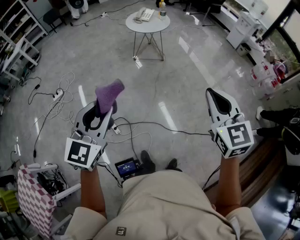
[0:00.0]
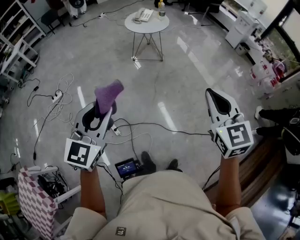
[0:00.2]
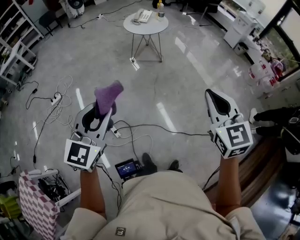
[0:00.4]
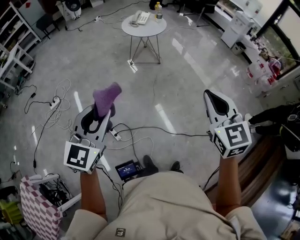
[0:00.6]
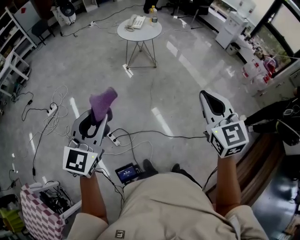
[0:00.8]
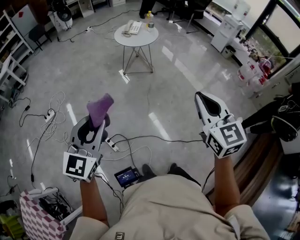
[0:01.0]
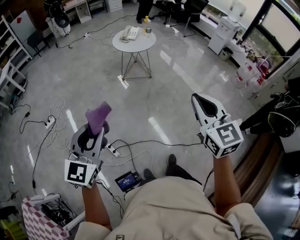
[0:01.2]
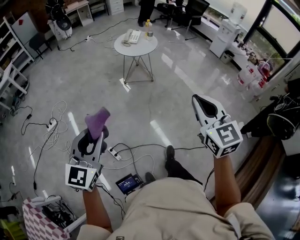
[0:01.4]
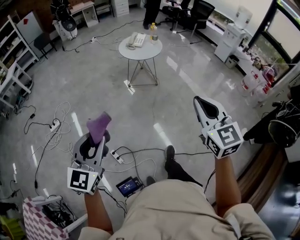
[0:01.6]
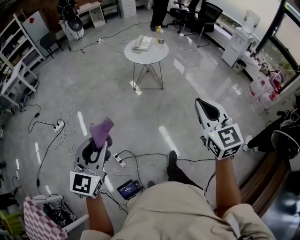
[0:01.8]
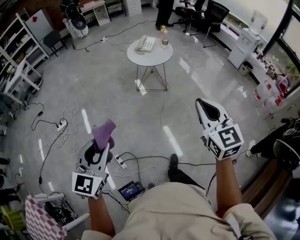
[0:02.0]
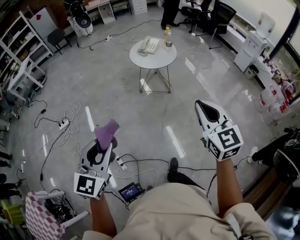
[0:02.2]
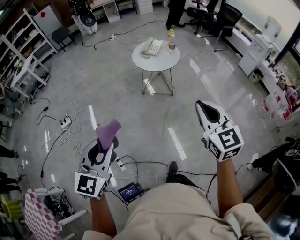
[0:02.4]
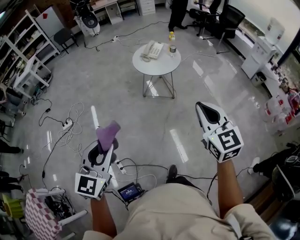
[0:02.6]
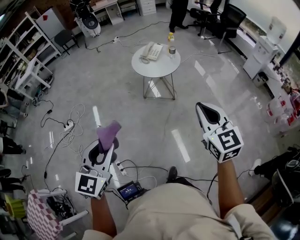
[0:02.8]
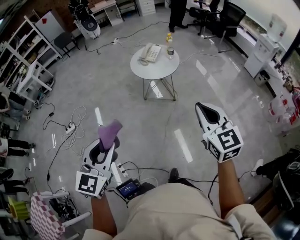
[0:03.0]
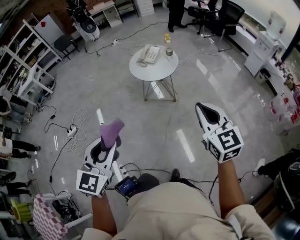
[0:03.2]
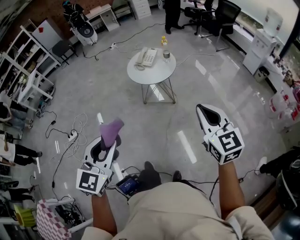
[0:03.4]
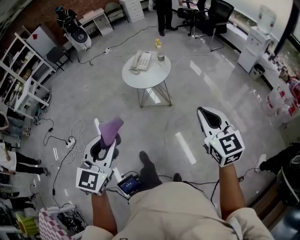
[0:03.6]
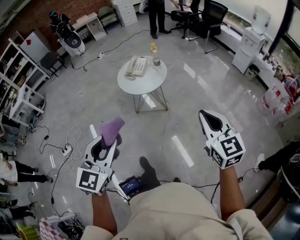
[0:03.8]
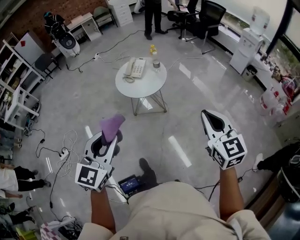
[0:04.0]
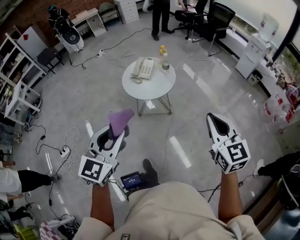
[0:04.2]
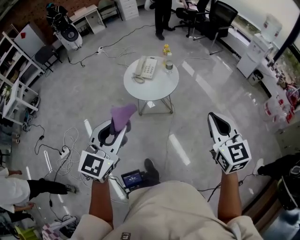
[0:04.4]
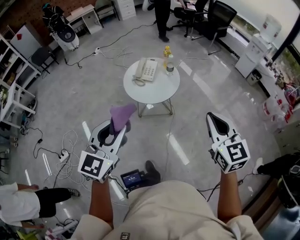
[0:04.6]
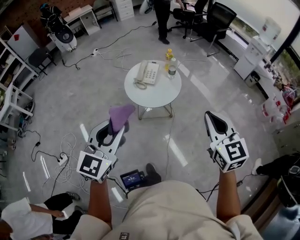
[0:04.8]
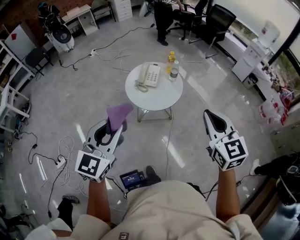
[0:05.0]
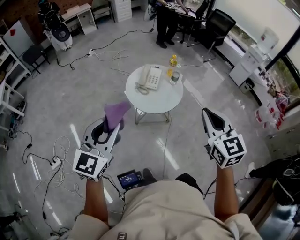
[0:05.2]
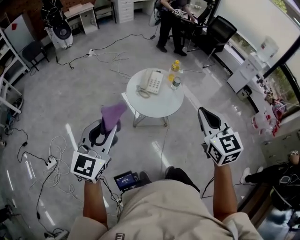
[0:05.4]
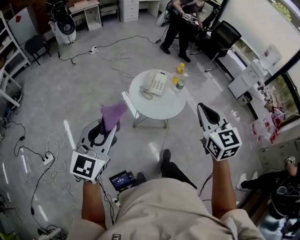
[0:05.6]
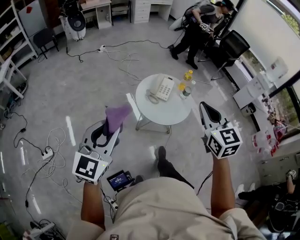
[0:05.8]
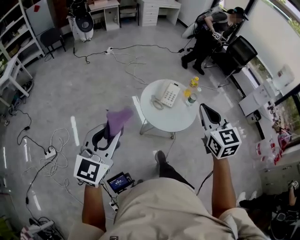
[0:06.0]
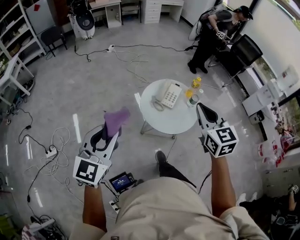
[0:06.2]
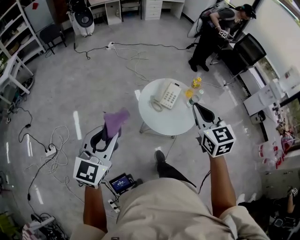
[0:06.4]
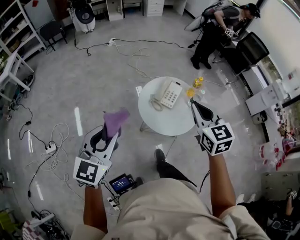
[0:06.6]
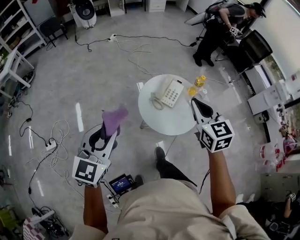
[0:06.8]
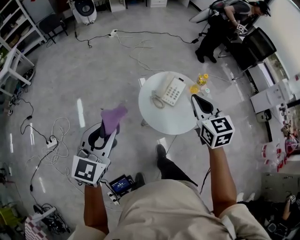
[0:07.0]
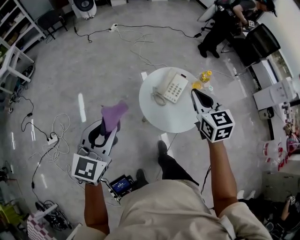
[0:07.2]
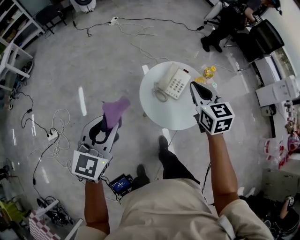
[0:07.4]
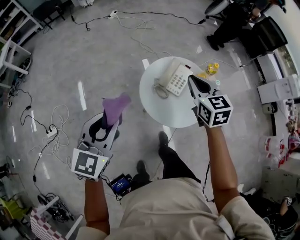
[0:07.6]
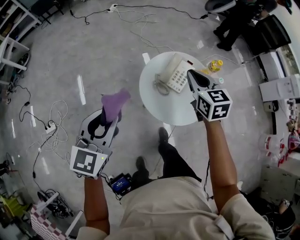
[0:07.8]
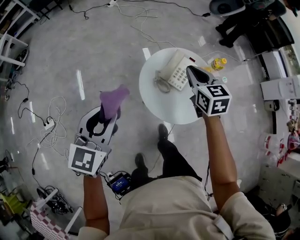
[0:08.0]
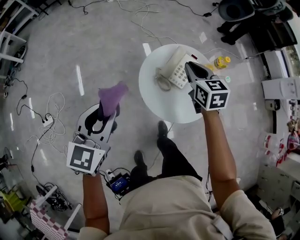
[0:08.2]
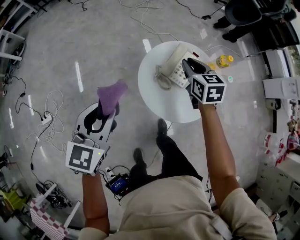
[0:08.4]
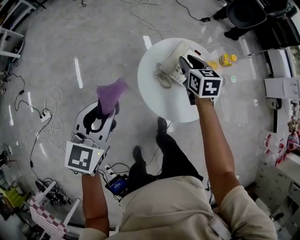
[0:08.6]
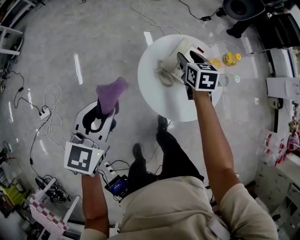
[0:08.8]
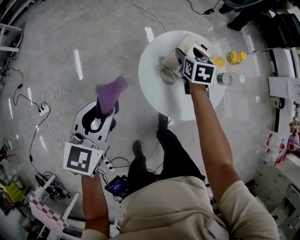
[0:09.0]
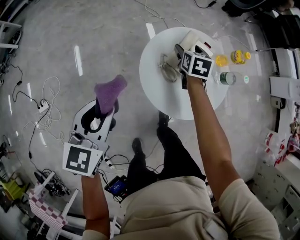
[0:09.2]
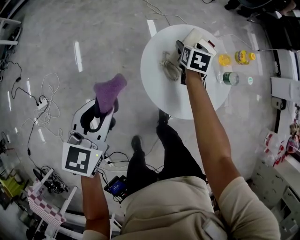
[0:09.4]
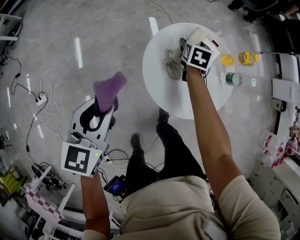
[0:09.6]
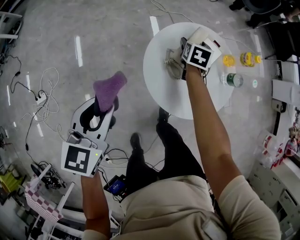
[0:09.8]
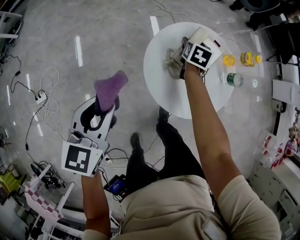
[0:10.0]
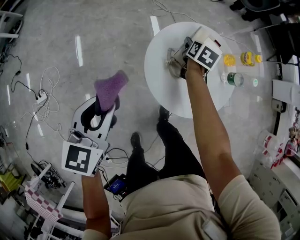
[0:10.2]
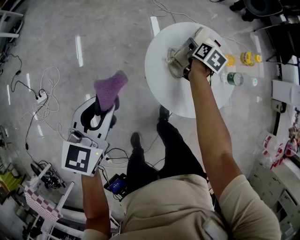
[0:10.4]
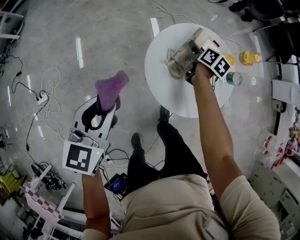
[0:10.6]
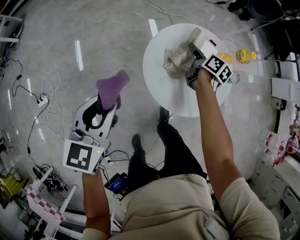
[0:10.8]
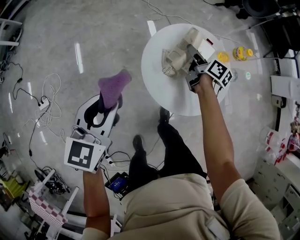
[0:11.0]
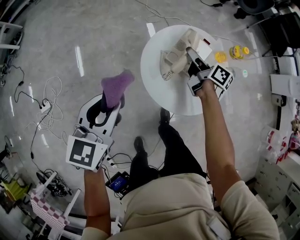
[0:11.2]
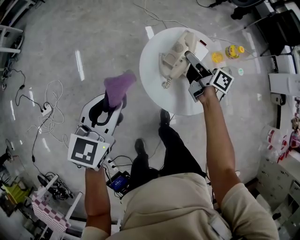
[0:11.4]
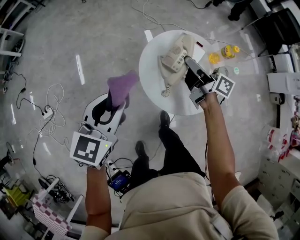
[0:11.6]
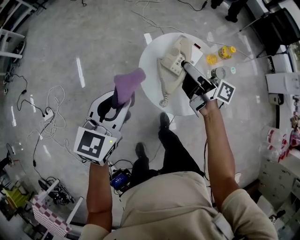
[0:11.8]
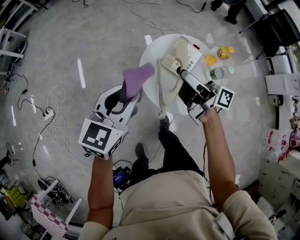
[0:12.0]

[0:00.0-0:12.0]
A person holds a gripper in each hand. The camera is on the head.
0:00.0 to 0:01.6: The left gripper shifts some 10 cm to the left and forward. Meanwhile the right gripper moves forward and to the left, roughly 15 cm.
0:01.6 to 0:03.0: Both grippers move forward and to the right, roughly 30 cm.
0:03.0 to 0:04.4: The right gripper heads forward, covering some 20 cm; the left gripper goes approximately 30 cm forward.
0:04.4 to 0:06.0: The two grippers go roughly 35 cm to the left and forward.
0:06.0 to 0:07.6: Both grippers move forward and downward, roughly 25 cm.
0:07.6 to 0:09.0: The right gripper travels downward and forward by about 30 cm, changes its angle by roughly 20 degrees, and opens its fingers; the left gripper goes some 15 cm downward and forward.
0:09.0 to 0:10.4: The right gripper travels downward by roughly 10 cm, and swivels about 30 degrees.
0:10.4 to 0:12.0: The right gripper goes about 30 cm upward and backward, and angles its fingers upward, by some 60 degrees. Meanwhile the left gripper moves to the right and upward, roughly 10 cm.

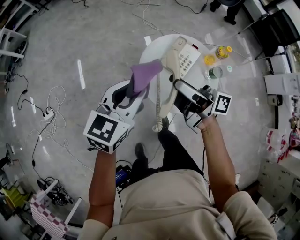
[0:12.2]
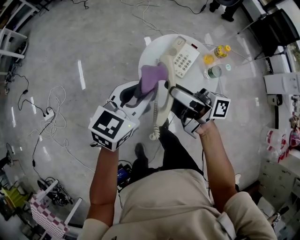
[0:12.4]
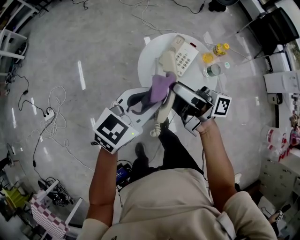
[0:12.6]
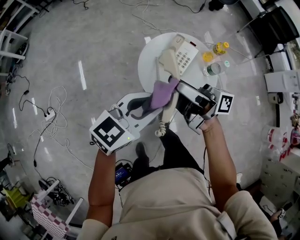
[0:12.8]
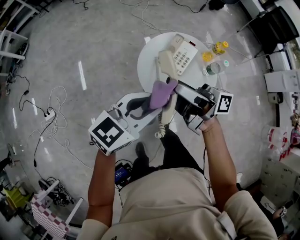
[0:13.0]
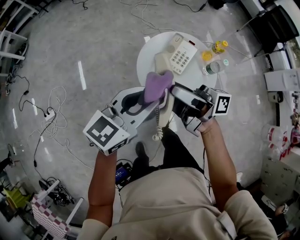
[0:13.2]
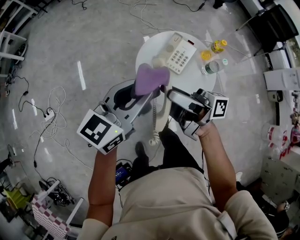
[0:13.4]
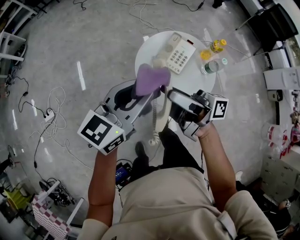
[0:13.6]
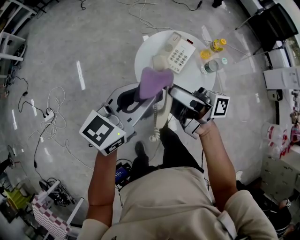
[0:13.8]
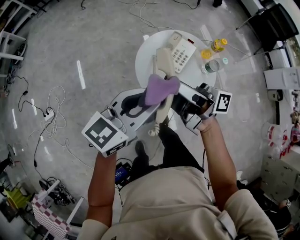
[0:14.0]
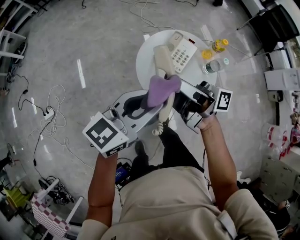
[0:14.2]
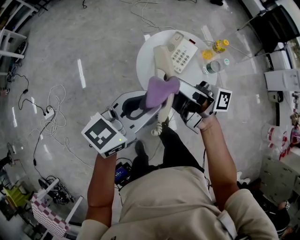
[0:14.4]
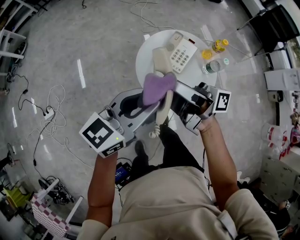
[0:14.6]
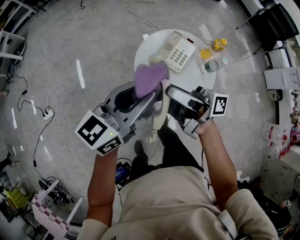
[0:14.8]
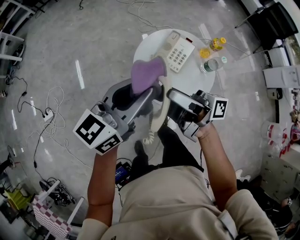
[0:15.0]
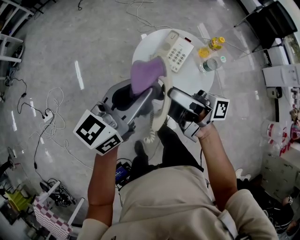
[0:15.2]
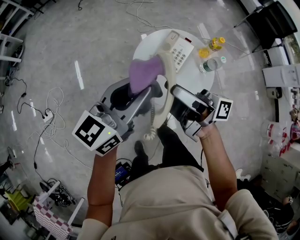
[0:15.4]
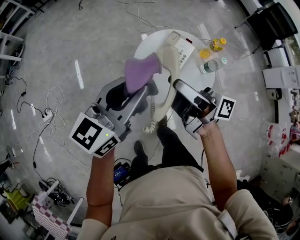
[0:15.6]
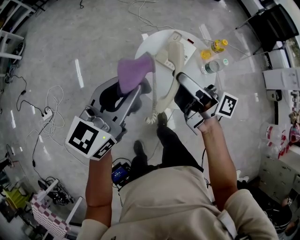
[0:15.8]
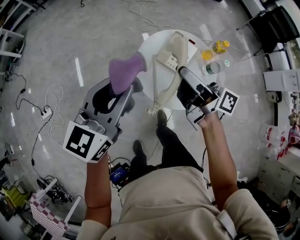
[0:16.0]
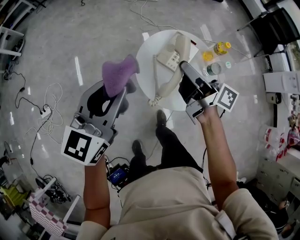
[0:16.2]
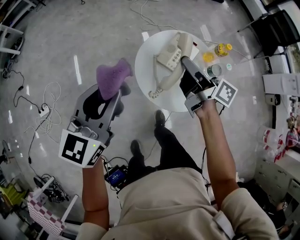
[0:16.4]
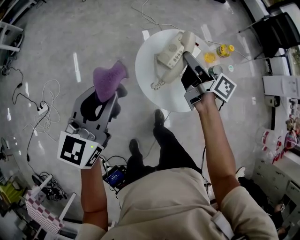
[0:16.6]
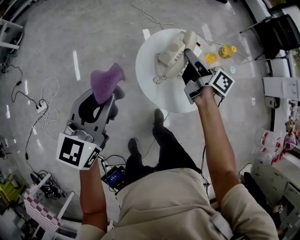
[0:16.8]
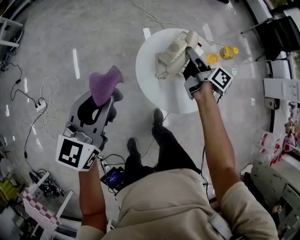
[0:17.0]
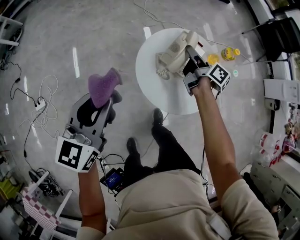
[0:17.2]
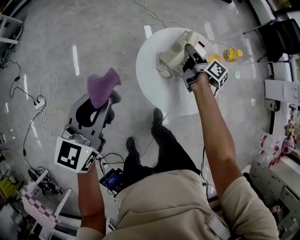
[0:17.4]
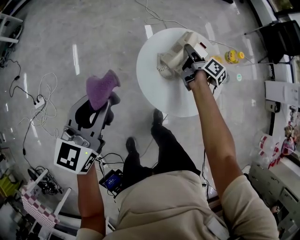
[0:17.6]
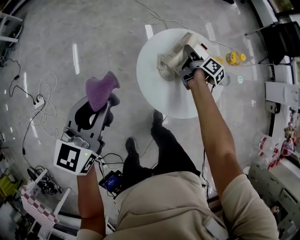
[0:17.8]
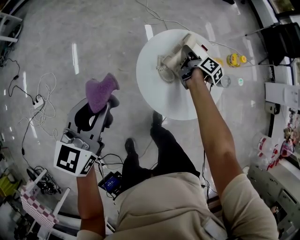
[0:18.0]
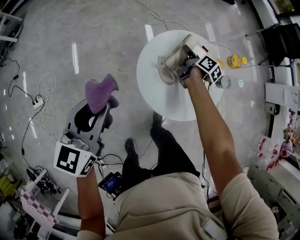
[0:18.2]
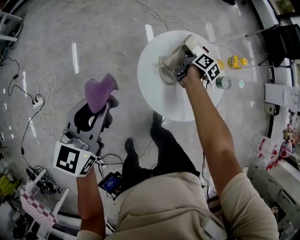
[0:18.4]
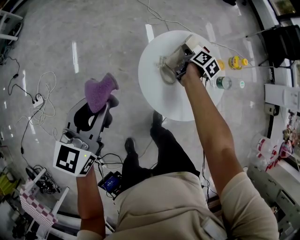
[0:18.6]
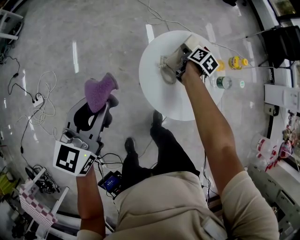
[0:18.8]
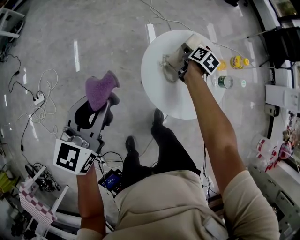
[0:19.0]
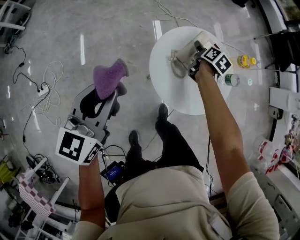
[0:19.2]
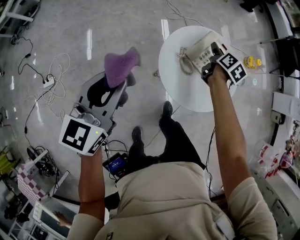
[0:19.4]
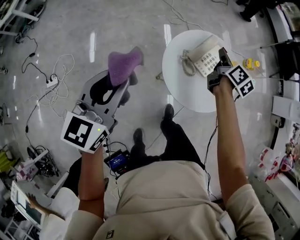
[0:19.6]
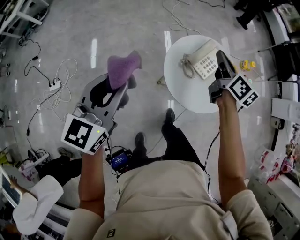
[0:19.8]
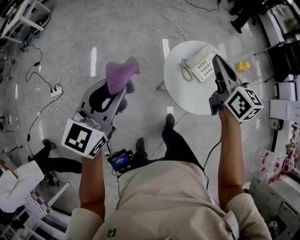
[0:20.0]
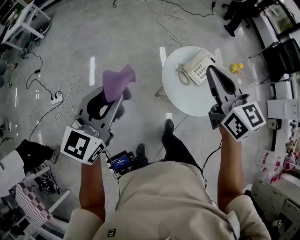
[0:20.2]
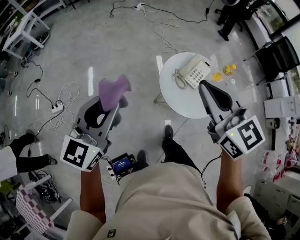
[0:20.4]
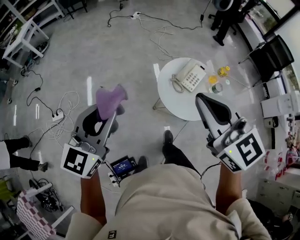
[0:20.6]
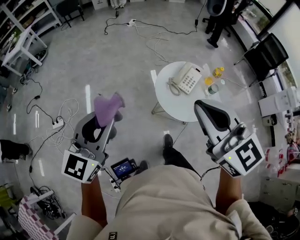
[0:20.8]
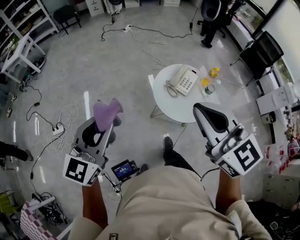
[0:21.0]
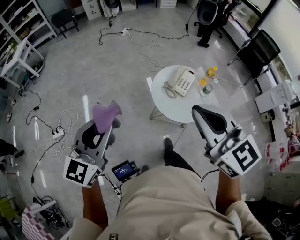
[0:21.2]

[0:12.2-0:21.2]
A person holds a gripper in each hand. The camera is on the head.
0:12.2 to 0:13.8: The left gripper is displaced to the right by some 5 cm, and moves approximately 10 cm backward and comes back.
0:13.8 to 0:15.2: The grippers move only a little.
0:15.2 to 0:16.6: The left gripper goes some 10 cm to the left, and swivels approximately 30 degrees, while the right gripper heads forward, downward and to the right, covering approximately 20 cm, and changes its angle by some 40 degrees.
0:16.6 to 0:18.2: The left gripper shifts approximately 5 cm downward. The right gripper heads downward and forward, covering some 25 cm, and rotates some 30 degrees.
0:18.2 to 0:19.8: The left gripper is displaced upward, backward and to the left by about 15 cm; the right gripper shifts some 30 cm upward and backward, changes its angle by some 40 degrees, and closes.
0:19.8 to 0:21.2: The left gripper shifts roughly 25 cm backward and upward. The right gripper goes approximately 40 cm backward and upward, and twists approximately 40 degrees counterclockwise, seen from behind.

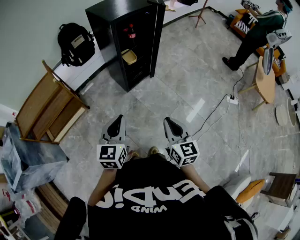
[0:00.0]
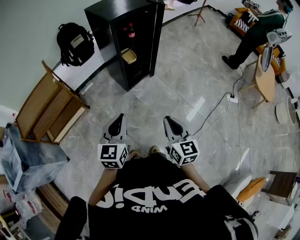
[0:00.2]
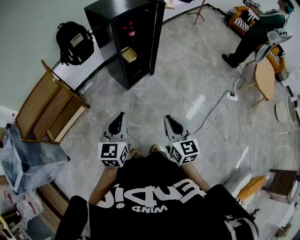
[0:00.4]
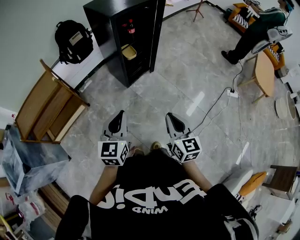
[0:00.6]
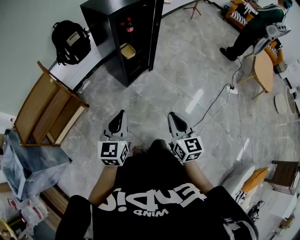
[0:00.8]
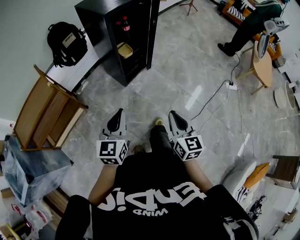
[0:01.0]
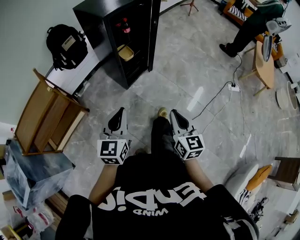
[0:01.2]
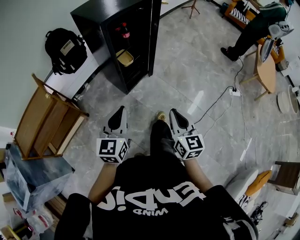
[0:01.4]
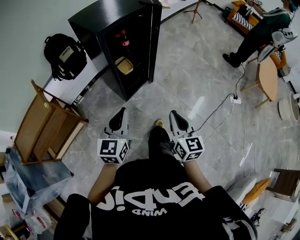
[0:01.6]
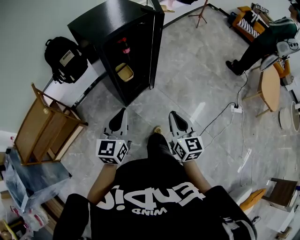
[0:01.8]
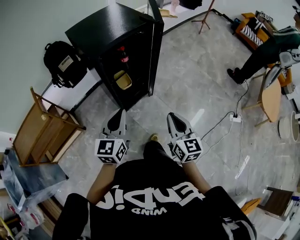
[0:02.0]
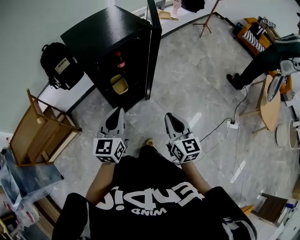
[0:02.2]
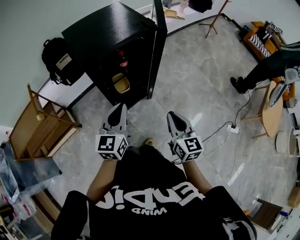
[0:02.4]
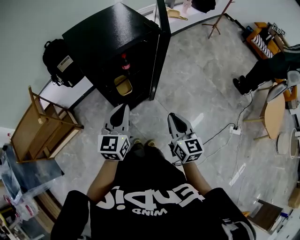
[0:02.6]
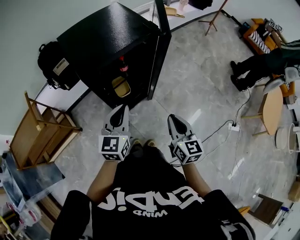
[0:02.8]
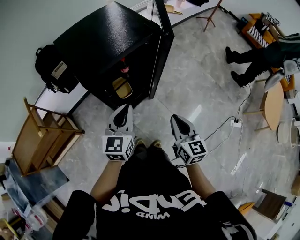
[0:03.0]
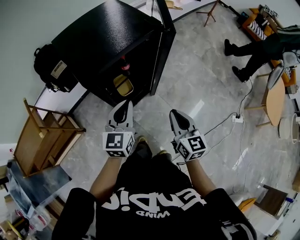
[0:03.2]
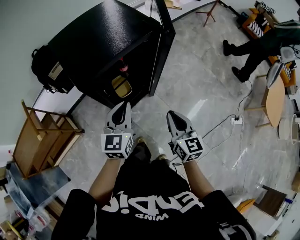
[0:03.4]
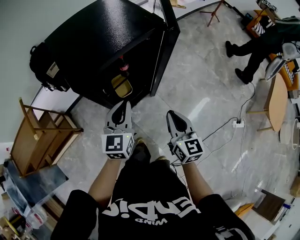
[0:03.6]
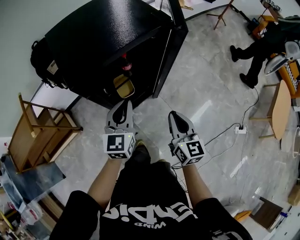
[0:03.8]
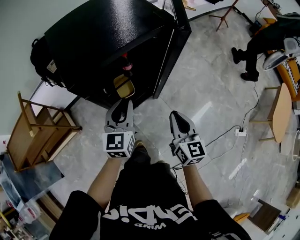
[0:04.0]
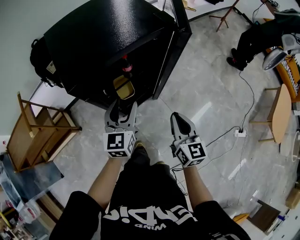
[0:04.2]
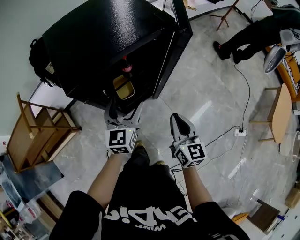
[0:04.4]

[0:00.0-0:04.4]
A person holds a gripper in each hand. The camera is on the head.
0:00.0 to 0:01.4: The two grippers go some 10 cm forward.
0:01.4 to 0:03.0: The two grippers go some 35 cm forward.
0:03.0 to 0:04.4: The right gripper goes roughly 10 cm forward and downward; the left gripper shifts about 15 cm downward and forward, and opens.
